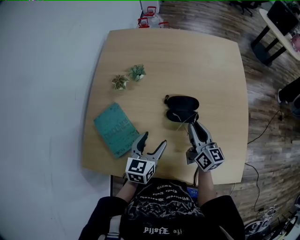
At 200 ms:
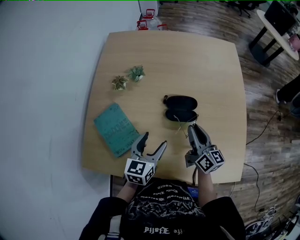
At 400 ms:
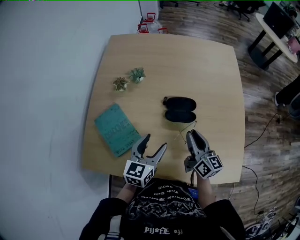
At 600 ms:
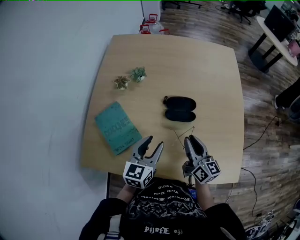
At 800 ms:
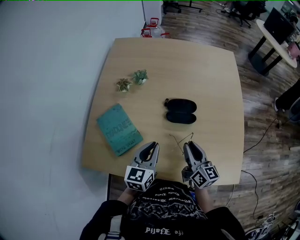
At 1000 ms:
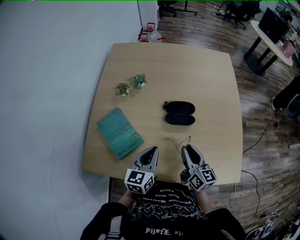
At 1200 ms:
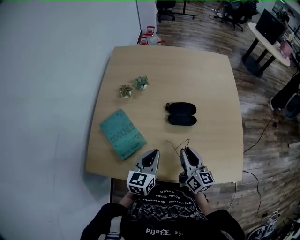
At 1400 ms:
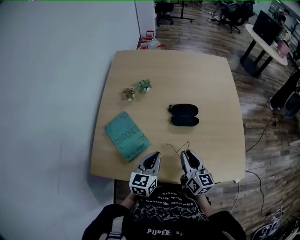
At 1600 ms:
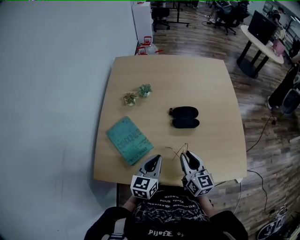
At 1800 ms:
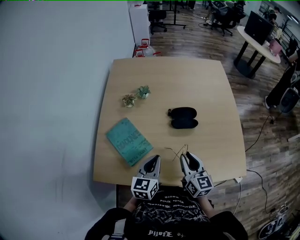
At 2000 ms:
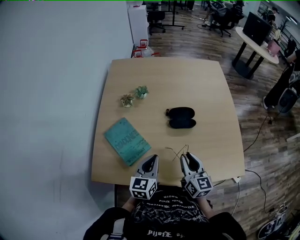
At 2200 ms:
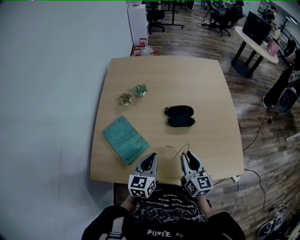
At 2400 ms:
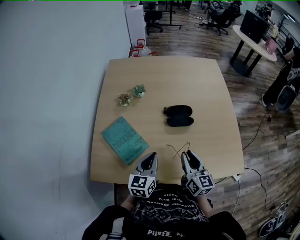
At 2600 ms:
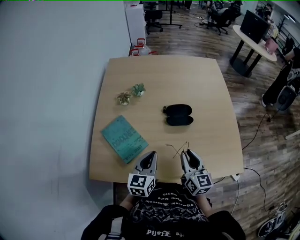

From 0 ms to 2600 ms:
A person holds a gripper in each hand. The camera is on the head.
From 0 ms to 1200 ms: The left gripper heads backward, covering roughly 10 cm, and closes up, while the right gripper moves backward, about 15 cm.
From 1200 ms to 2600 ms: The grippers stay close to where they were, moving slightly.

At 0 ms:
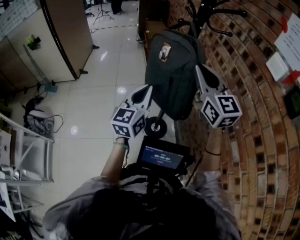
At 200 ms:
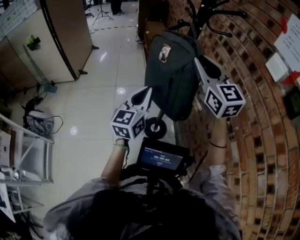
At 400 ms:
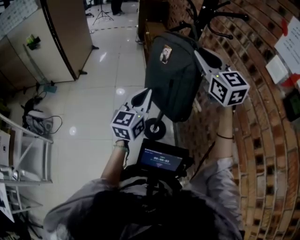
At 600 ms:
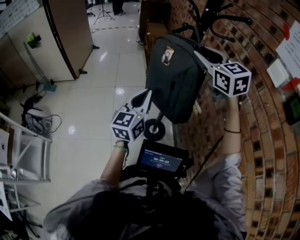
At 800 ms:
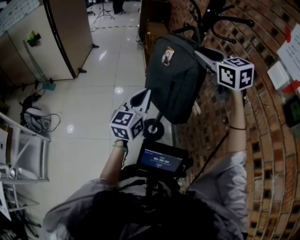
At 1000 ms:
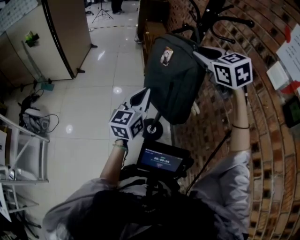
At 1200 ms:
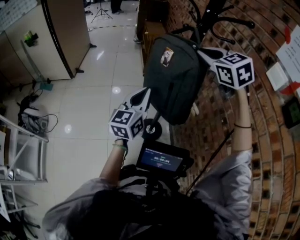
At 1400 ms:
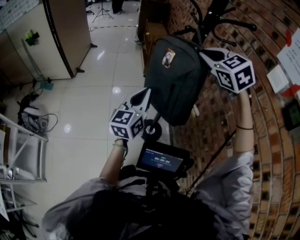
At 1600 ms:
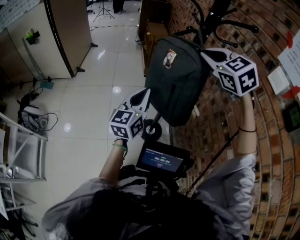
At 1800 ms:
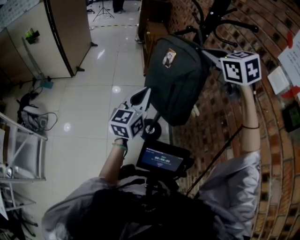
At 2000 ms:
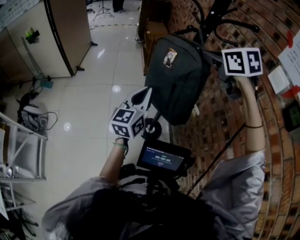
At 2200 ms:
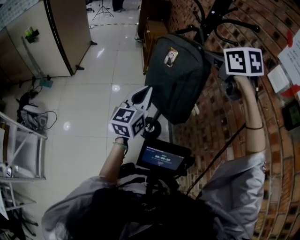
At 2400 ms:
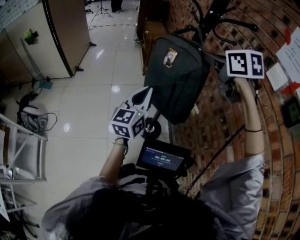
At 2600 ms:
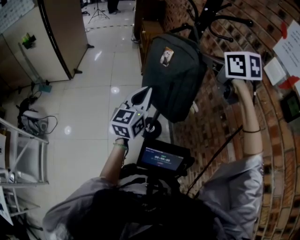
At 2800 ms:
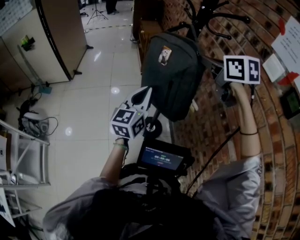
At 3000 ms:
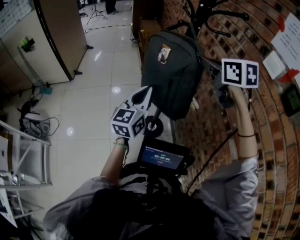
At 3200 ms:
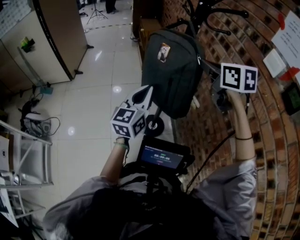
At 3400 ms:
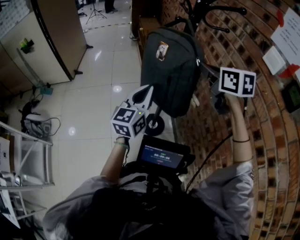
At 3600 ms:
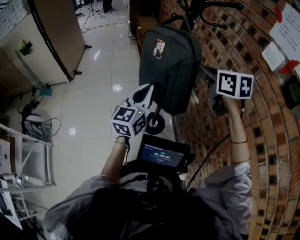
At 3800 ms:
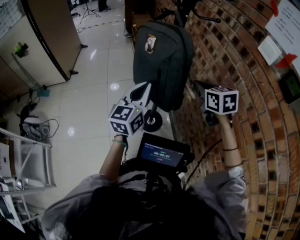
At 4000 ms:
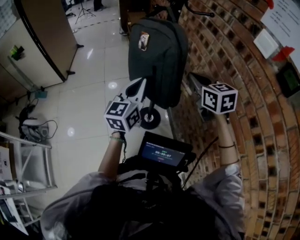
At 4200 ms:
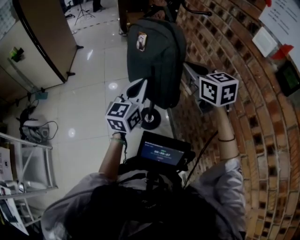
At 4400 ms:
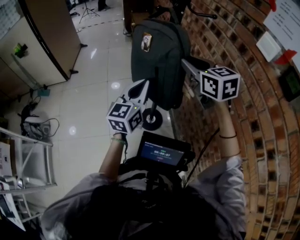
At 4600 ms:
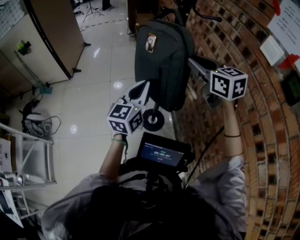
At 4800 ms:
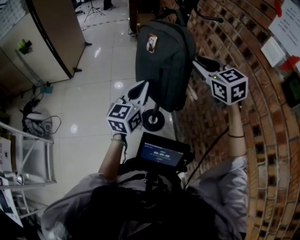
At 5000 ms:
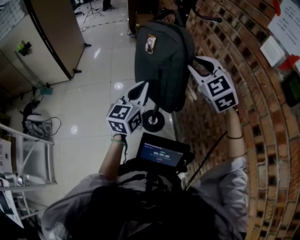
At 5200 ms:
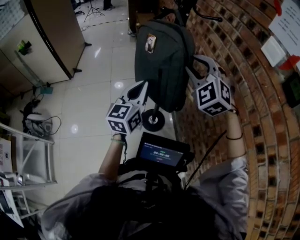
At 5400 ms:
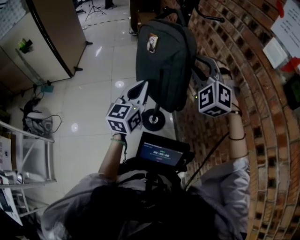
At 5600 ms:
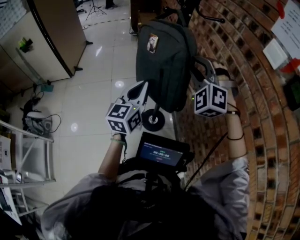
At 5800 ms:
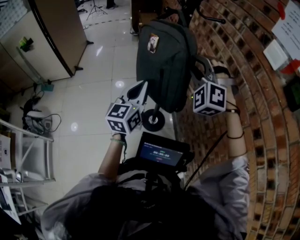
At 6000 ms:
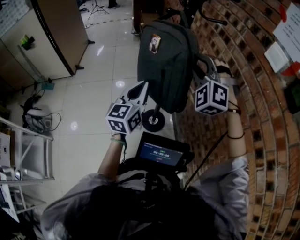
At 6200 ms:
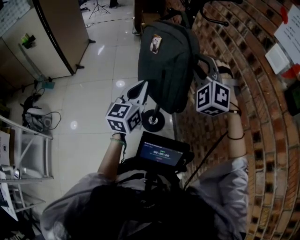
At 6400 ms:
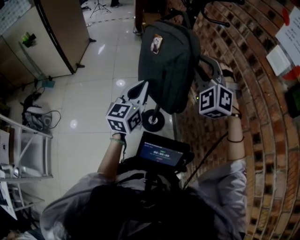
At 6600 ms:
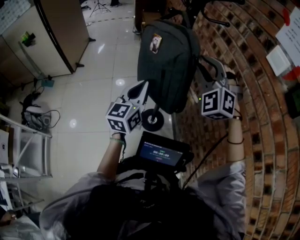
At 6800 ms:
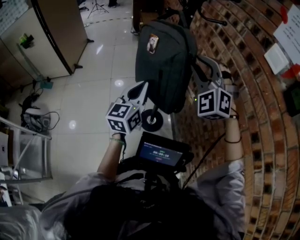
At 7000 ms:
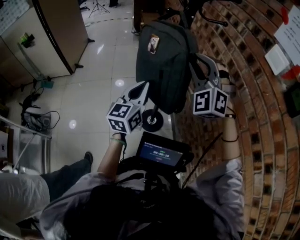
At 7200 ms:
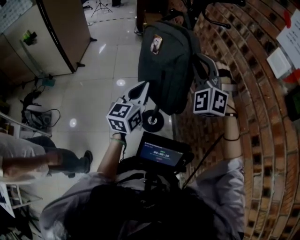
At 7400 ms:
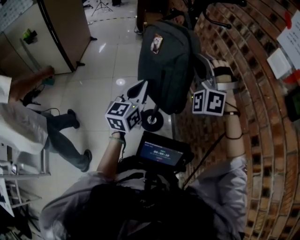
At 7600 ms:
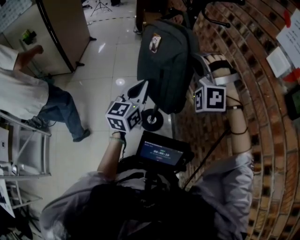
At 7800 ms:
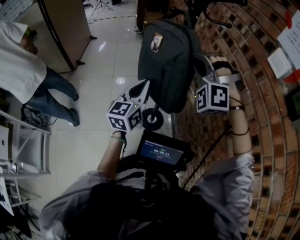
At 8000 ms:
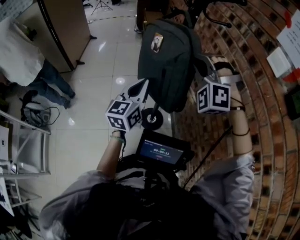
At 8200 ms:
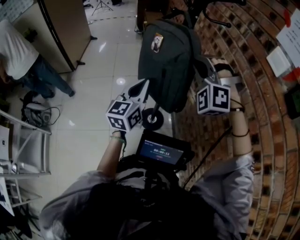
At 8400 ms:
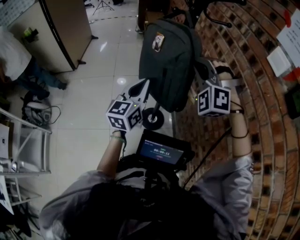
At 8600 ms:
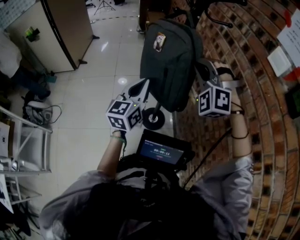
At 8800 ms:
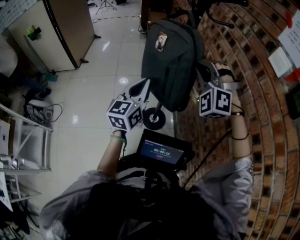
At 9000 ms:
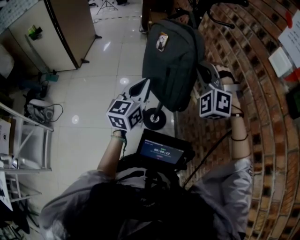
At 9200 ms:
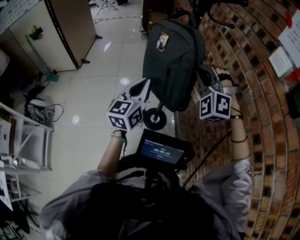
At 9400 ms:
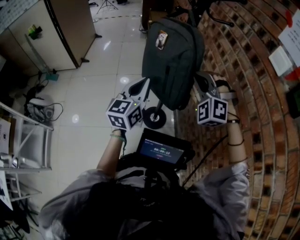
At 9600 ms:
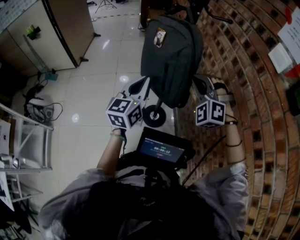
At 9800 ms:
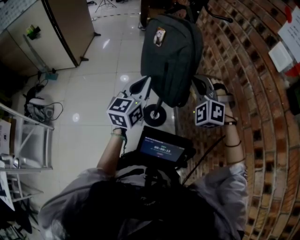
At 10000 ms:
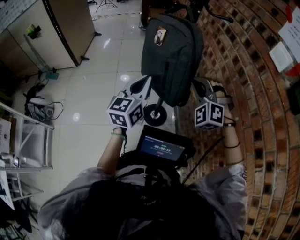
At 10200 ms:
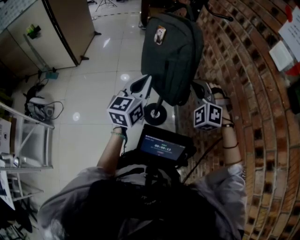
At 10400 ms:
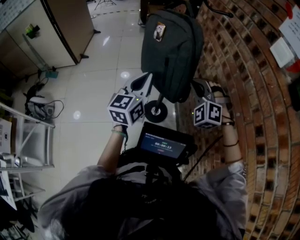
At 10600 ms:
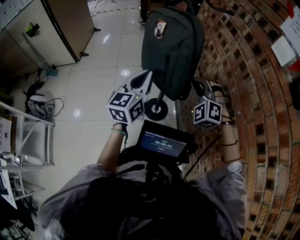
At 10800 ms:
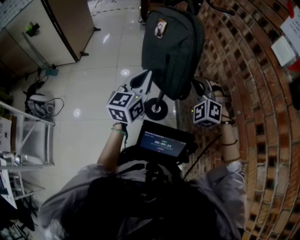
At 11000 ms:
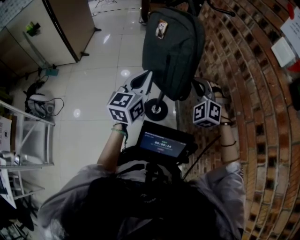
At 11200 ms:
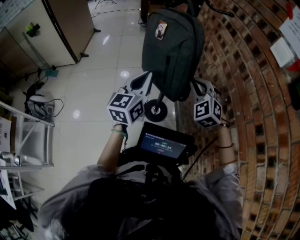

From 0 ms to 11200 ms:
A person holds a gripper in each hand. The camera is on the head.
From 0 ms to 1600 ms: The right gripper is displaced forward by some 5 cm, angles its fingers downward, by about 30 degrees, and opens, then closes again.
From 1600 ms to 3200 ms: The right gripper moves approximately 5 cm, and rolls clockwise, seen from behind, by about 40 degrees.
From 3200 ms to 4800 ms: The right gripper travels downward and back again, some 15 cm each way, rotates about 20 degrees, and opens its fingers.
From 4800 ms to 6400 ms: The right gripper rotates around the line of its fingers by about 50 degrees, counterclockwise from behind.
From 6400 ms to 8000 ms: The right gripper closes up.
From 8000 ms to 9600 ms: The right gripper travels downward by some 10 cm.
From 9600 ms to 11200 ms: The right gripper moves downward, some 5 cm, and turns by some 30 degrees.

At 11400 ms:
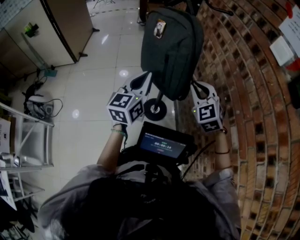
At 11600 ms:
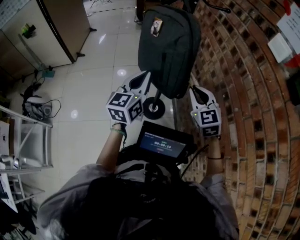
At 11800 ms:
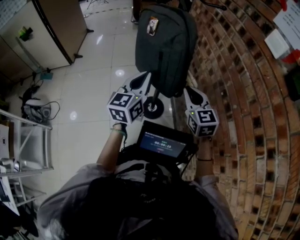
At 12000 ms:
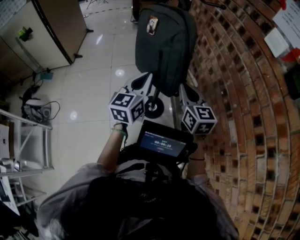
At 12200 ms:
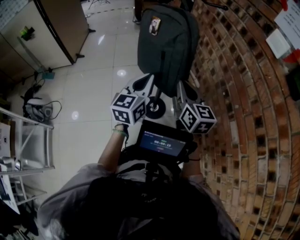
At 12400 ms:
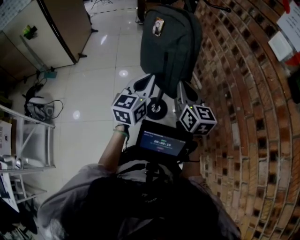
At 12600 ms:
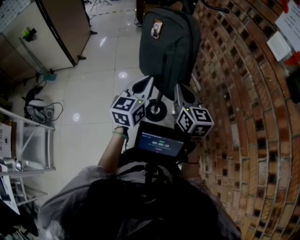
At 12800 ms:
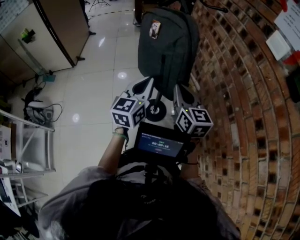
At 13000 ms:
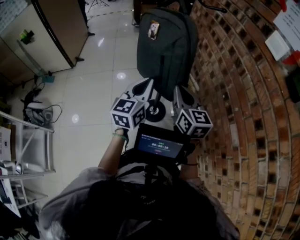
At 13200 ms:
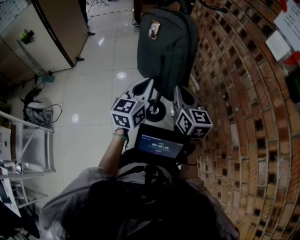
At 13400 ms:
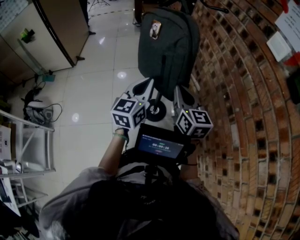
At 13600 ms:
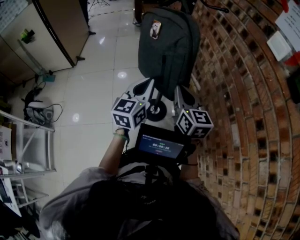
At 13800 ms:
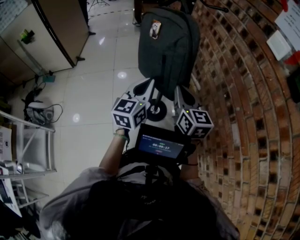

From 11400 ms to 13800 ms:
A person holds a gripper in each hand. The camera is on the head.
From 11400 ms to 12600 ms: The right gripper goes roughly 5 cm to the left, and twists approximately 50 degrees clockwise, seen from behind.
From 12600 ms to 13800 ms: The two grippers keep their place.

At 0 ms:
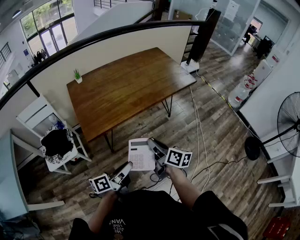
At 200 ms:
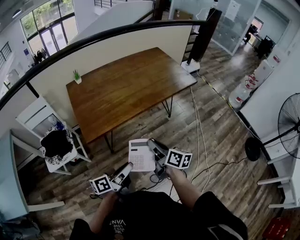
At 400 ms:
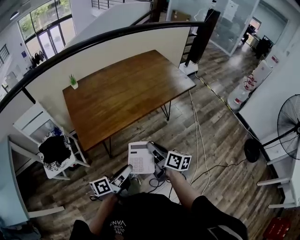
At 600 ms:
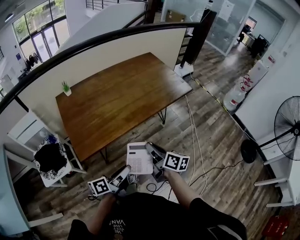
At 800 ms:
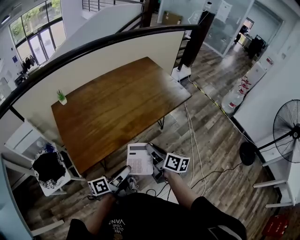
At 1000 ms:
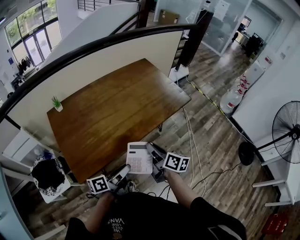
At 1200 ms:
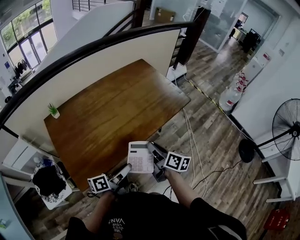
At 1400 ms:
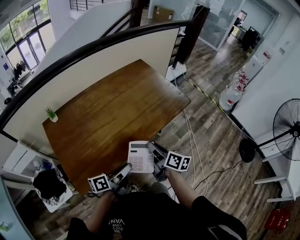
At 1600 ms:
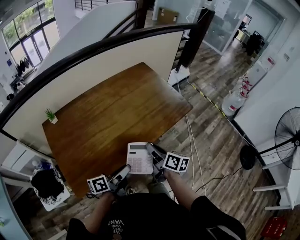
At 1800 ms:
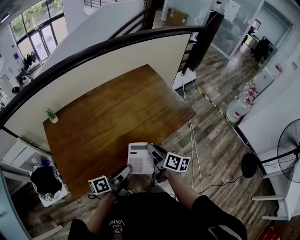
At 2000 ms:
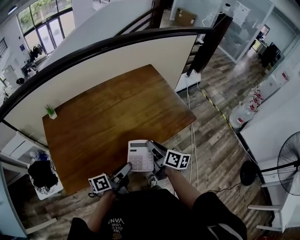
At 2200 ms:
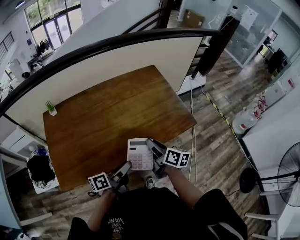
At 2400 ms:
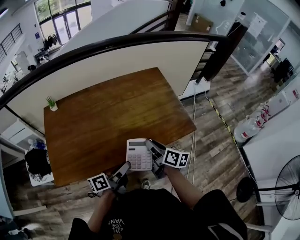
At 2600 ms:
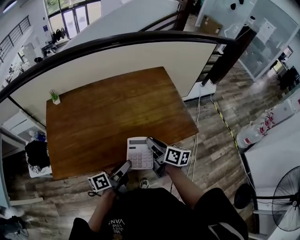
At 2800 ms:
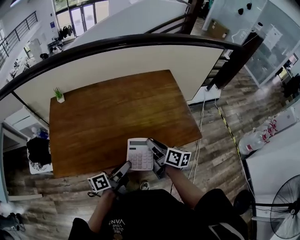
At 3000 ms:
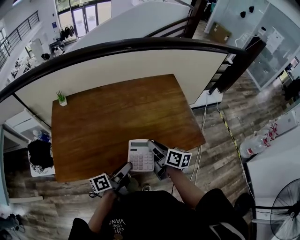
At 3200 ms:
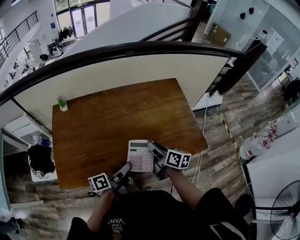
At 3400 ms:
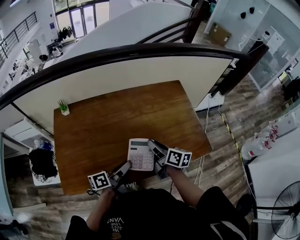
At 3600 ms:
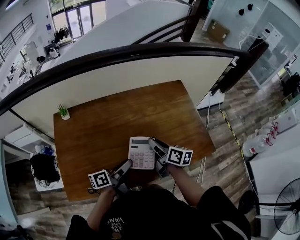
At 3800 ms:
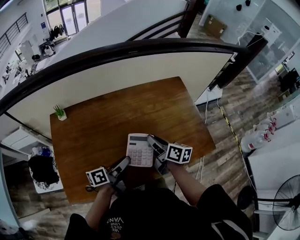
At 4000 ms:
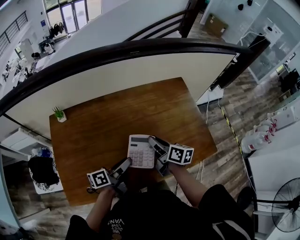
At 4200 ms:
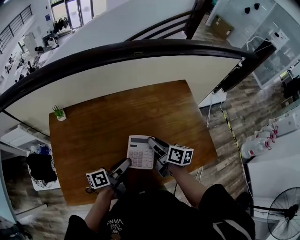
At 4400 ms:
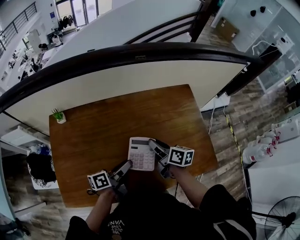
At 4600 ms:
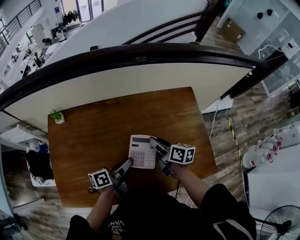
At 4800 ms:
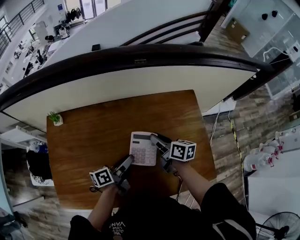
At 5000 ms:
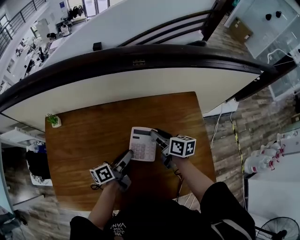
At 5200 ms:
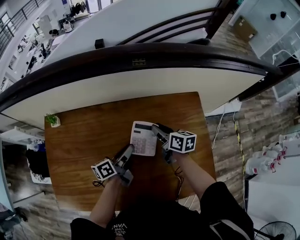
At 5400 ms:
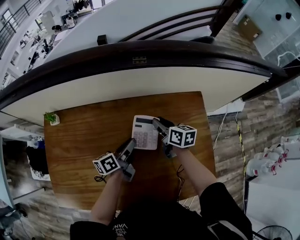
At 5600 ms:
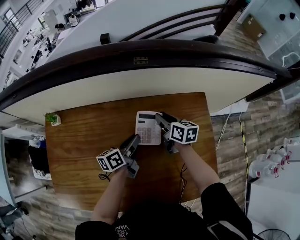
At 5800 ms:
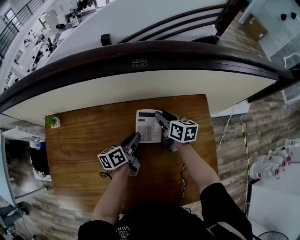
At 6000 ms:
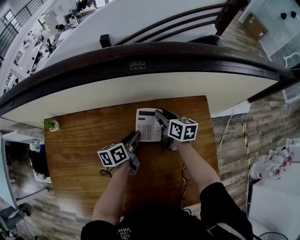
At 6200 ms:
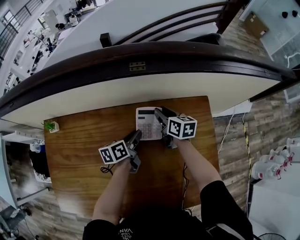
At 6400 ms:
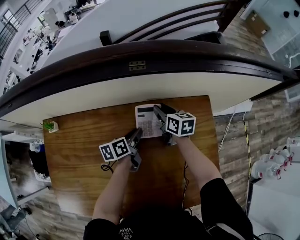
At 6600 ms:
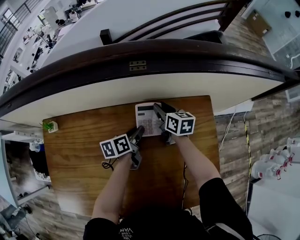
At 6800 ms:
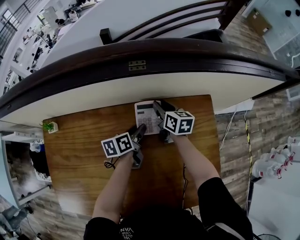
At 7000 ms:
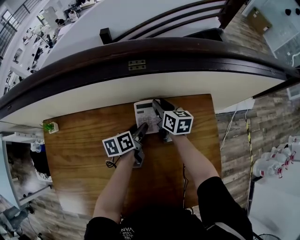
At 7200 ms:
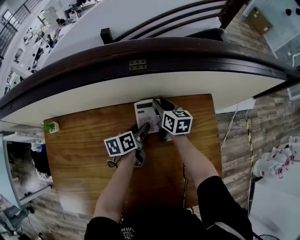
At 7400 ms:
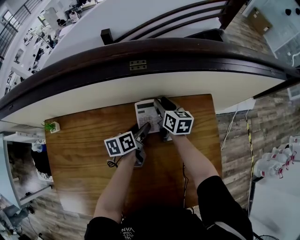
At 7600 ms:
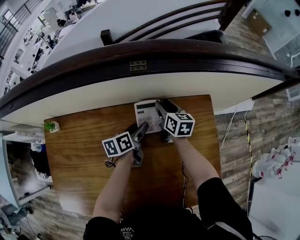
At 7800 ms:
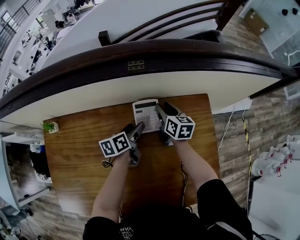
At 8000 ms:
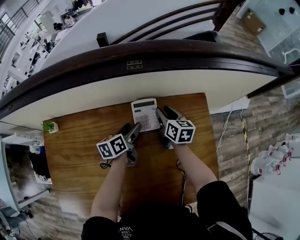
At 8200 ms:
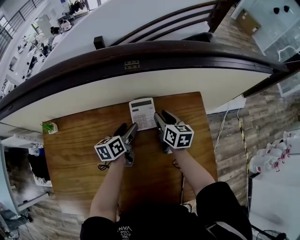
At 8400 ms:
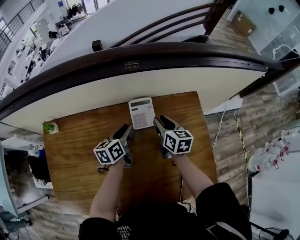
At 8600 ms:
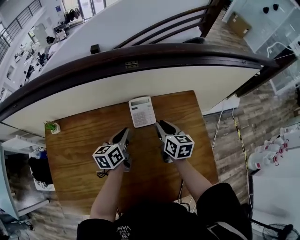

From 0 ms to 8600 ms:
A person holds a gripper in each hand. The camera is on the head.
From 0 ms to 1400 ms: The grippers both shift forward by some 25 cm.
From 1400 ms to 2800 ms: The left gripper shifts by approximately 15 cm, and turns by roughly 30 degrees. The right gripper moves roughly 15 cm, and turns by some 30 degrees.
From 2800 ms to 4400 ms: The grippers both shift forward and to the left by approximately 20 cm.
From 4400 ms to 5800 ms: The two grippers go about 25 cm forward. The left gripper changes its angle by approximately 20 degrees.
From 5800 ms to 7200 ms: The two grippers go approximately 5 cm forward. The left gripper opens up.
From 7200 ms to 8600 ms: The left gripper moves upward and backward, roughly 10 cm, rotates about 20 degrees, and closes its fingers, while the right gripper goes approximately 15 cm backward and upward.
